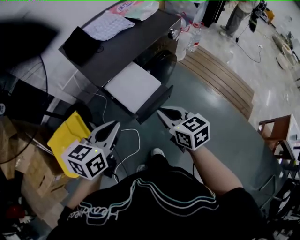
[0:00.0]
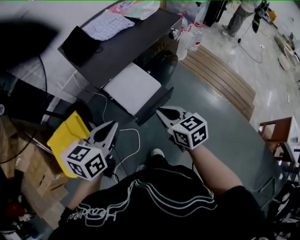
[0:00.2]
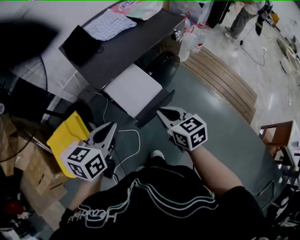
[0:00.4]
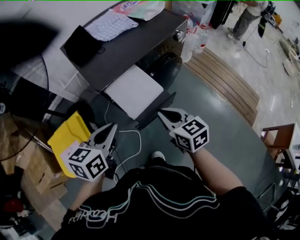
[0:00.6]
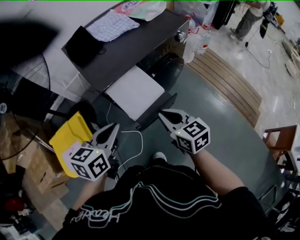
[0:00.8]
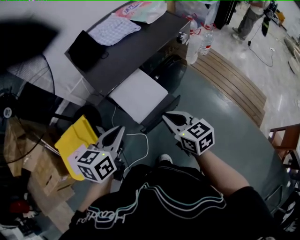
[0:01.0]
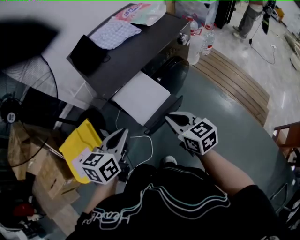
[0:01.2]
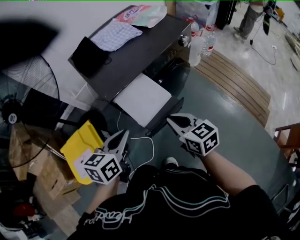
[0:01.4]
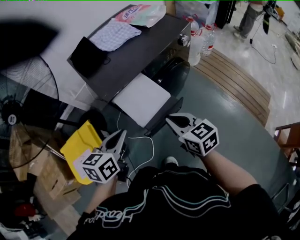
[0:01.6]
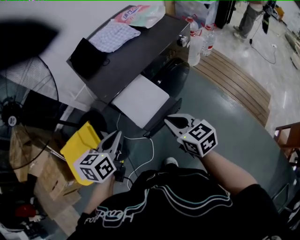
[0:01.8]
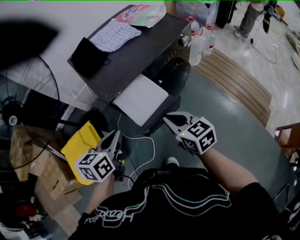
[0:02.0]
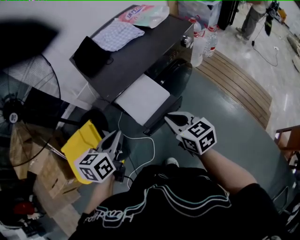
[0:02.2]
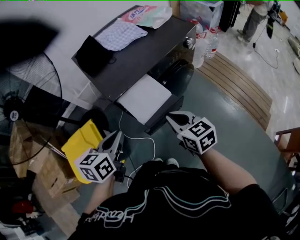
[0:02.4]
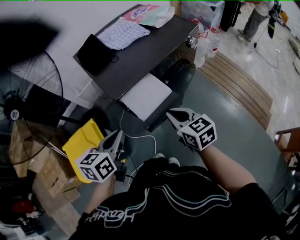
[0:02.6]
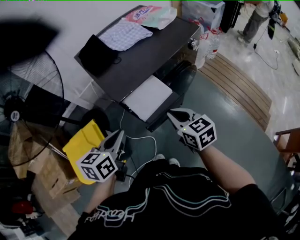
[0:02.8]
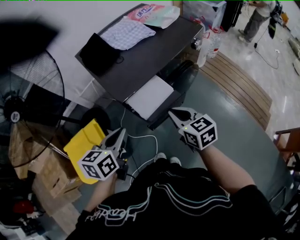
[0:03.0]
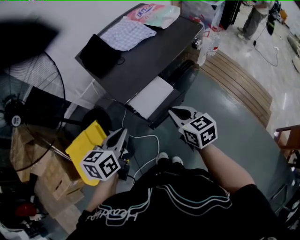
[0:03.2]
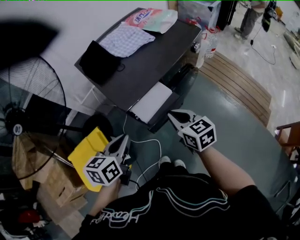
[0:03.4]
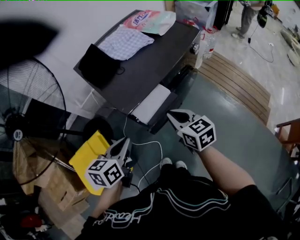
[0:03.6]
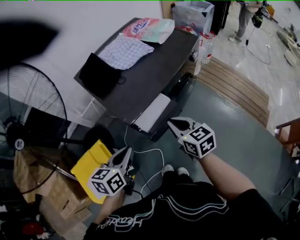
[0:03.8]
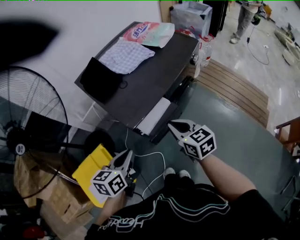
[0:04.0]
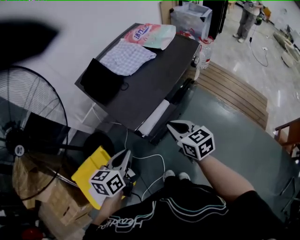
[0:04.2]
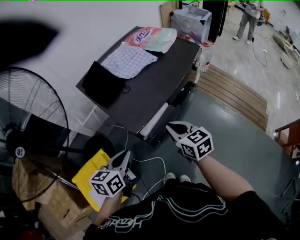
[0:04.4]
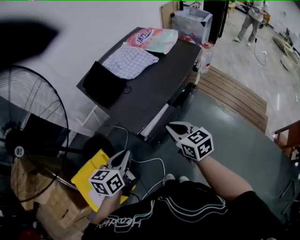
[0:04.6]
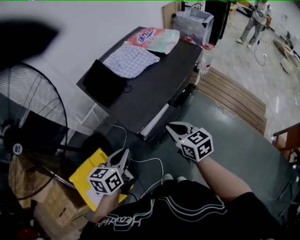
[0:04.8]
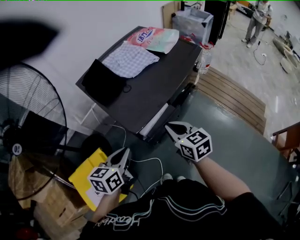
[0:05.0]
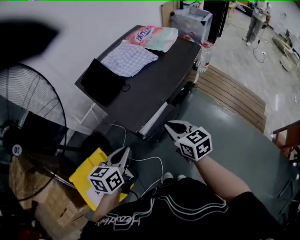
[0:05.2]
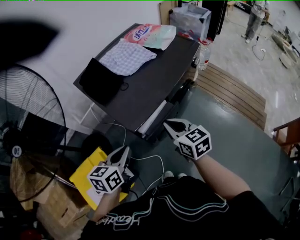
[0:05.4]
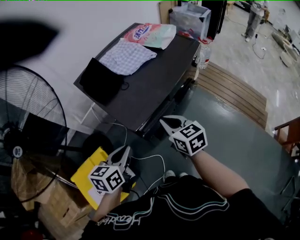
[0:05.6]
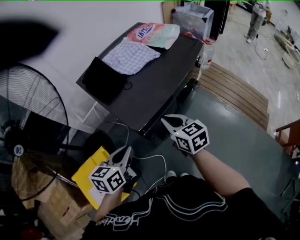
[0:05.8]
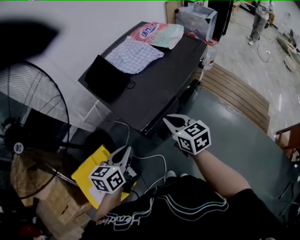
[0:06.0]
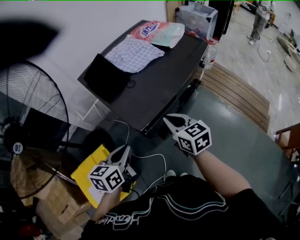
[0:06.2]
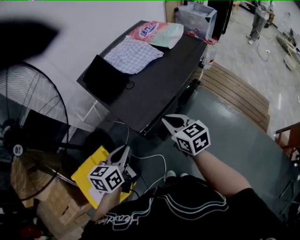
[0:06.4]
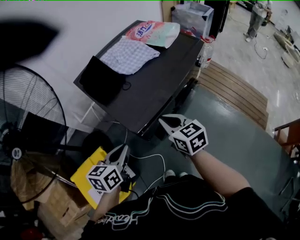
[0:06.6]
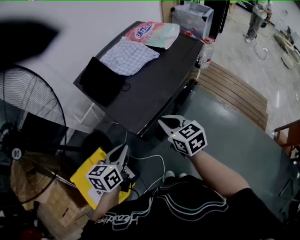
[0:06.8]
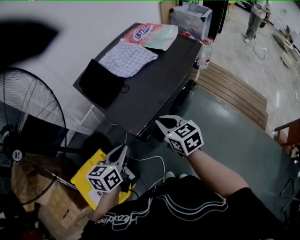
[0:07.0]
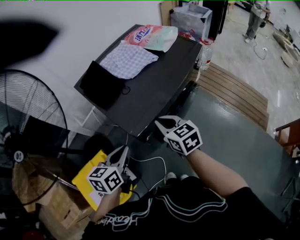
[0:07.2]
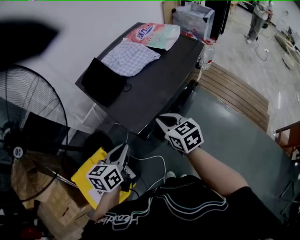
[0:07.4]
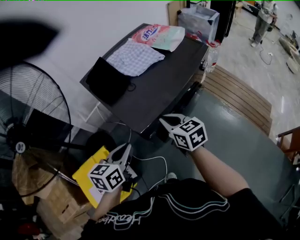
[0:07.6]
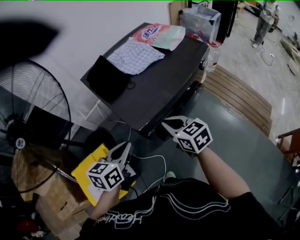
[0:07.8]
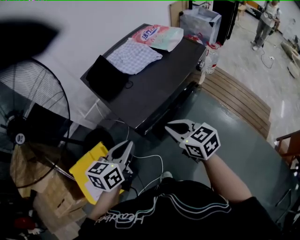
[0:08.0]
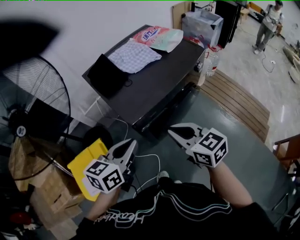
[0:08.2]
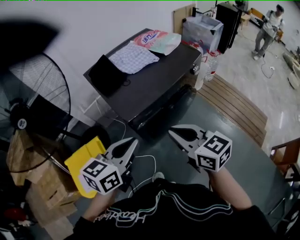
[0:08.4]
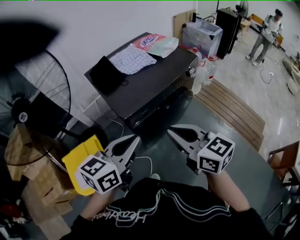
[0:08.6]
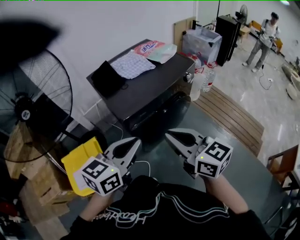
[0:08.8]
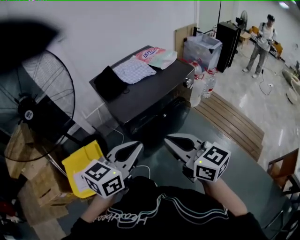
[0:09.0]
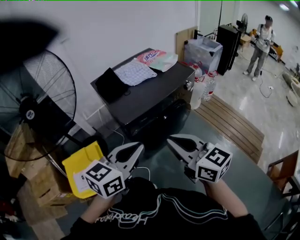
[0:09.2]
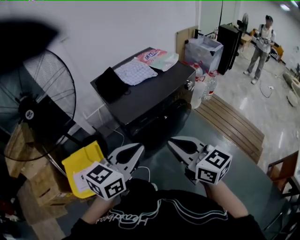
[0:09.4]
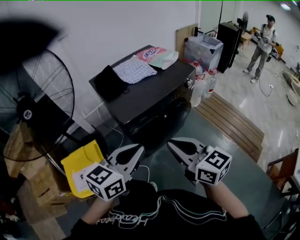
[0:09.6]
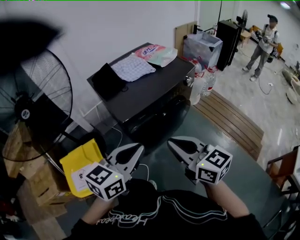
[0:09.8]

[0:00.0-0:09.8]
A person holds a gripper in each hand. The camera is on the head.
0:00.0 to 0:01.4: The left gripper ends up about 5 cm from where it was.
0:01.4 to 0:02.8: The left gripper travels to the left by approximately 5 cm.
0:02.8 to 0:04.2: Both grippers move forward and to the left, approximately 10 cm.
0:04.2 to 0:05.6: The grippers move only a little.
0:05.6 to 0:07.0: There are only small adjustments of the grippers.
0:07.0 to 0:08.4: The right gripper shifts about 20 cm backward, upward and to the right. The left gripper goes roughly 20 cm upward, to the right and backward.
0:08.4 to 0:09.8: The left gripper is displaced backward and to the right by roughly 10 cm; the right gripper moves backward, about 5 cm.

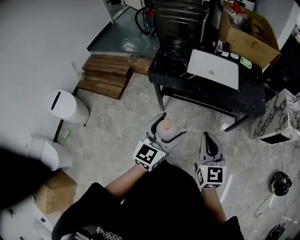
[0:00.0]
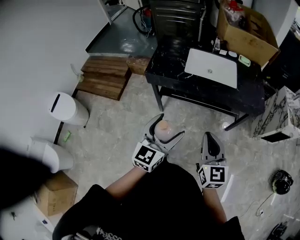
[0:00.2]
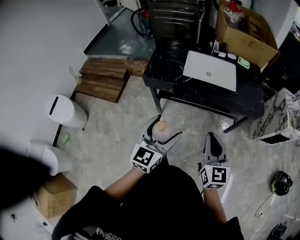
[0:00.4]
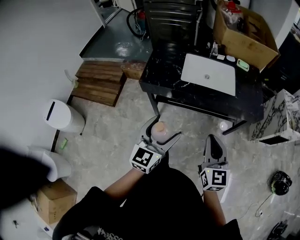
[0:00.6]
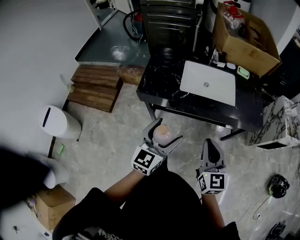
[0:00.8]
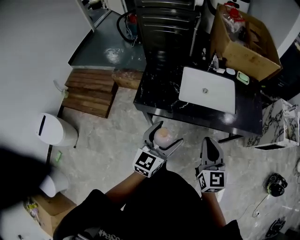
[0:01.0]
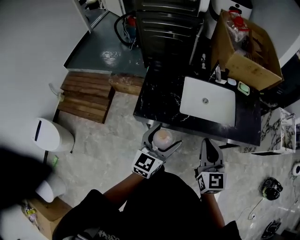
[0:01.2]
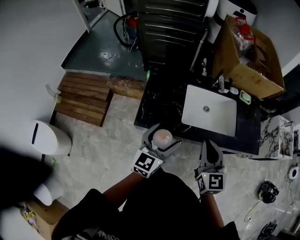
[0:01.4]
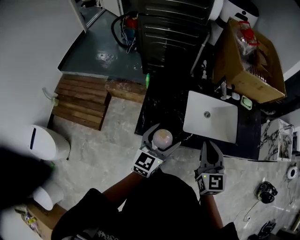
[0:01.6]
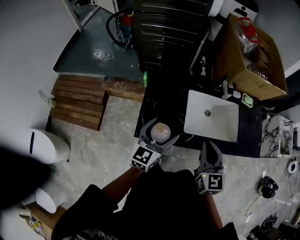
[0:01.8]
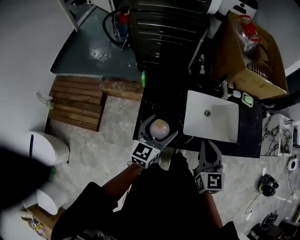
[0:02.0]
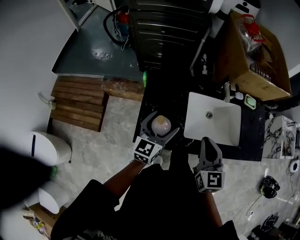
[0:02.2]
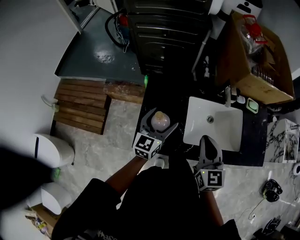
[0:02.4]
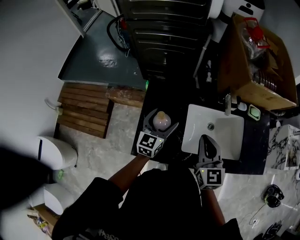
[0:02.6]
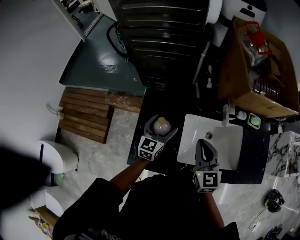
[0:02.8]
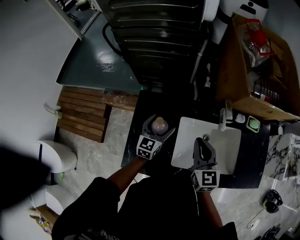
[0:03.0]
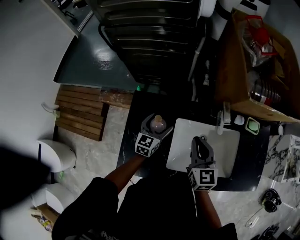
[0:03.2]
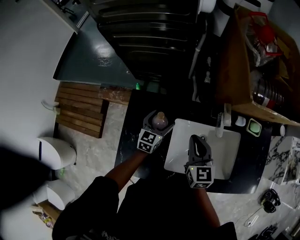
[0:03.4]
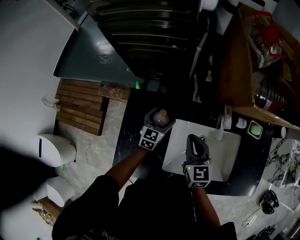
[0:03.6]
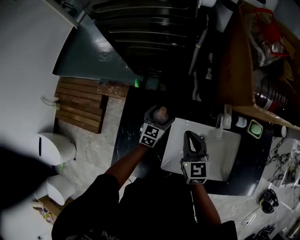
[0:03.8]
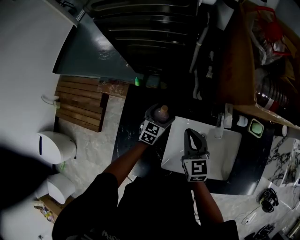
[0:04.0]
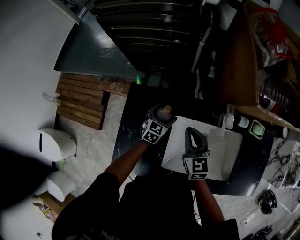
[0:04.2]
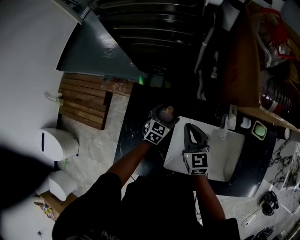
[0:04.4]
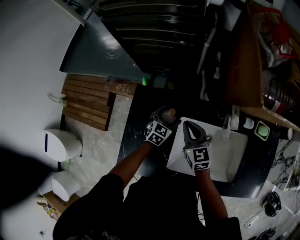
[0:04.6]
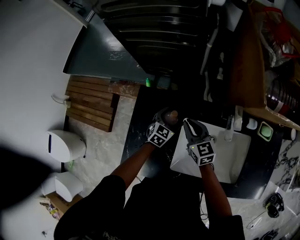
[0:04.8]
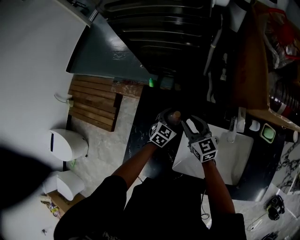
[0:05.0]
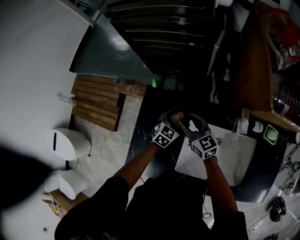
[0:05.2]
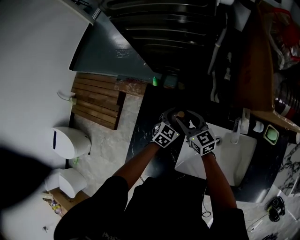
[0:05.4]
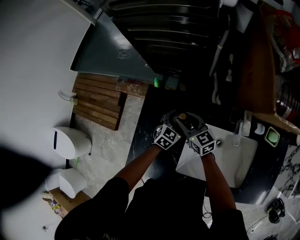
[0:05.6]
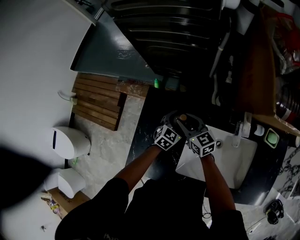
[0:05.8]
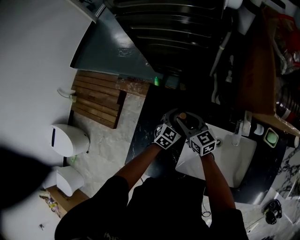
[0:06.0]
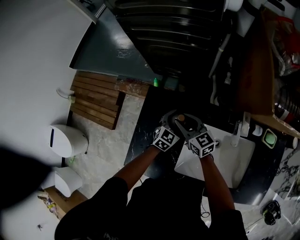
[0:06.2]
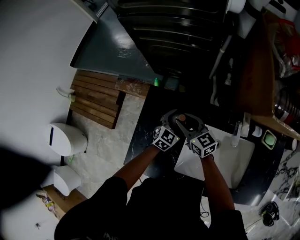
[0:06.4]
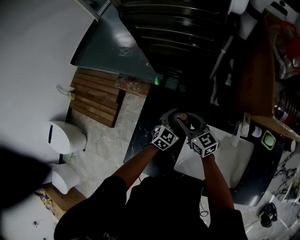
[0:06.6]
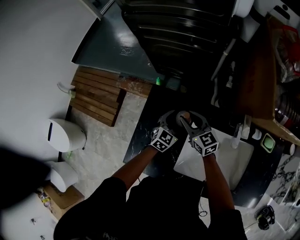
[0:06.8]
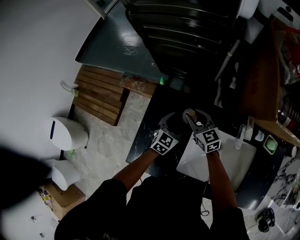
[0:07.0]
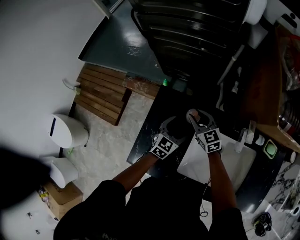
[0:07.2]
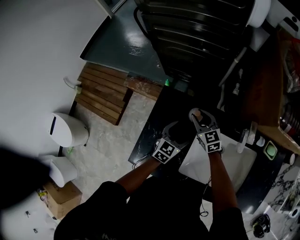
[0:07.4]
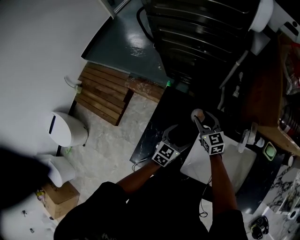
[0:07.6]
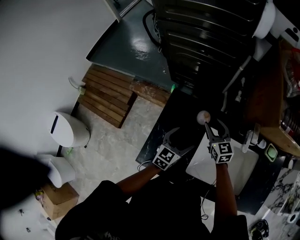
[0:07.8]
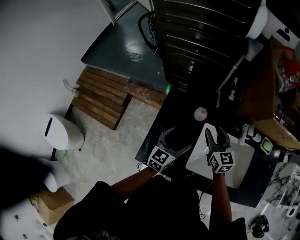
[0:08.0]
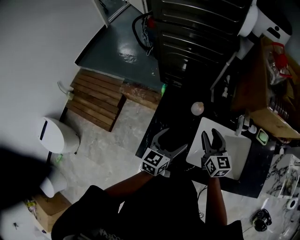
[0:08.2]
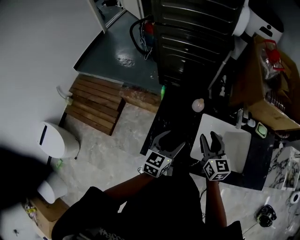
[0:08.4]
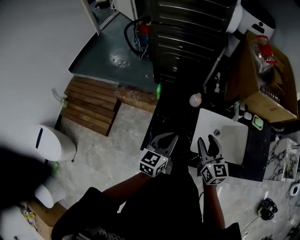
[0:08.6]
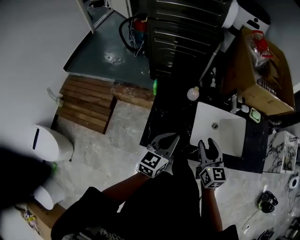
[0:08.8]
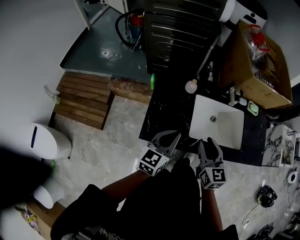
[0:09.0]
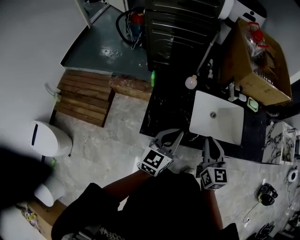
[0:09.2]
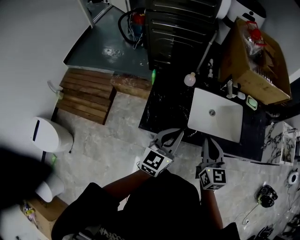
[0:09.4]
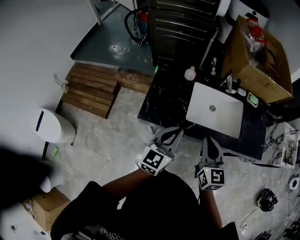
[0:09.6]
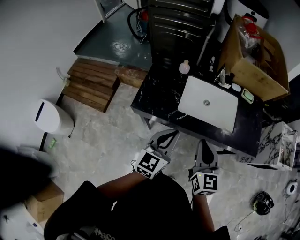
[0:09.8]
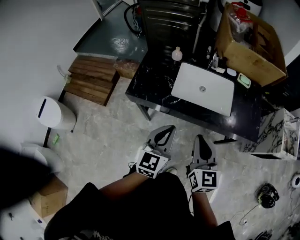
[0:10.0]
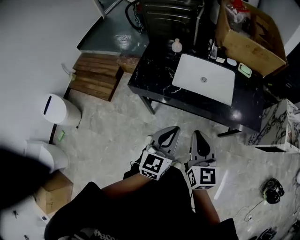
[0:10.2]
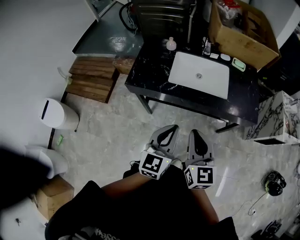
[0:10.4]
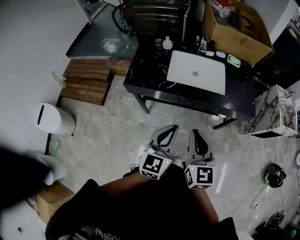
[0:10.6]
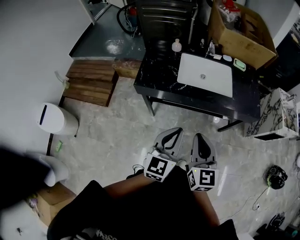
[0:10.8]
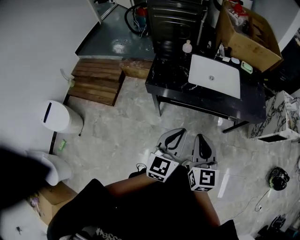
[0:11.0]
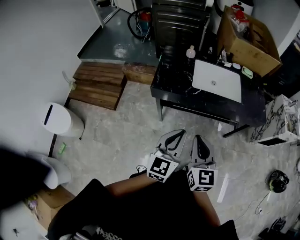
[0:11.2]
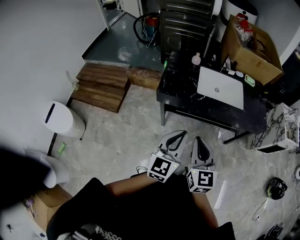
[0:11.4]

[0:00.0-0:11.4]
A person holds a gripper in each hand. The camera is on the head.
0:00.0 to 0:01.4: The two grippers go roughly 35 cm forward.
0:01.4 to 0:02.8: Both grippers move forward, approximately 25 cm.
0:02.8 to 0:04.2: The right gripper shifts roughly 15 cm forward and downward. Meanwhile the left gripper travels downward and forward by roughly 20 cm, and changes its angle by some 20 degrees.
0:04.2 to 0:05.6: The right gripper travels to the left, downward and forward by about 15 cm, swivels some 30 degrees, and opens up.
0:05.6 to 0:07.2: The left gripper moves upward, about 5 cm.
0:07.2 to 0:08.6: The right gripper shifts approximately 30 cm backward and upward, and rotates approximately 30 degrees, while the left gripper travels backward, upward and to the left by approximately 30 cm, turns by about 20 degrees, and closes its fingers.
0:08.6 to 0:10.0: The two grippers go approximately 30 cm backward and to the right. The right gripper closes its fingers.
0:10.0 to 0:11.4: The right gripper moves to the left and backward, approximately 25 cm; the left gripper is displaced backward and to the left by approximately 20 cm.

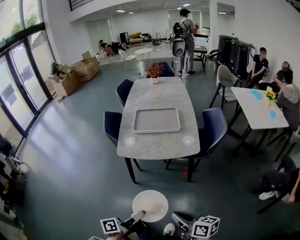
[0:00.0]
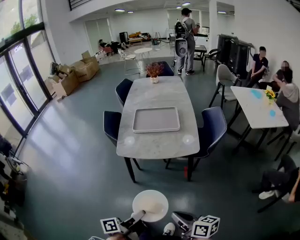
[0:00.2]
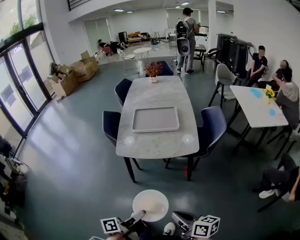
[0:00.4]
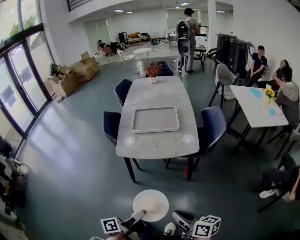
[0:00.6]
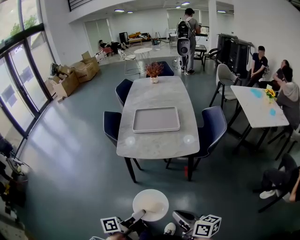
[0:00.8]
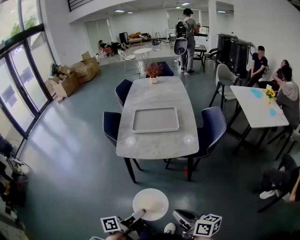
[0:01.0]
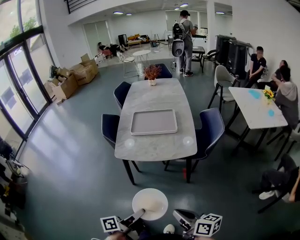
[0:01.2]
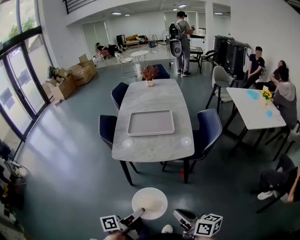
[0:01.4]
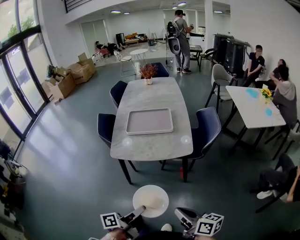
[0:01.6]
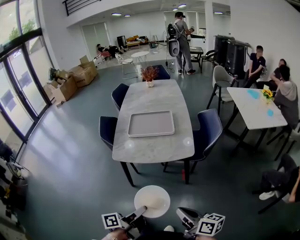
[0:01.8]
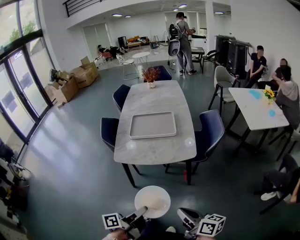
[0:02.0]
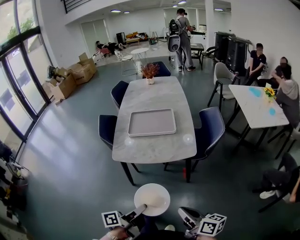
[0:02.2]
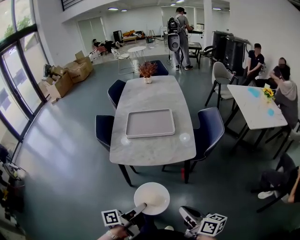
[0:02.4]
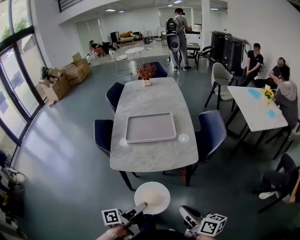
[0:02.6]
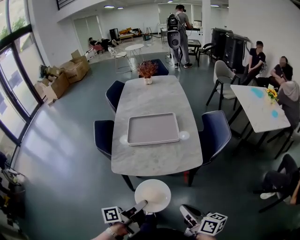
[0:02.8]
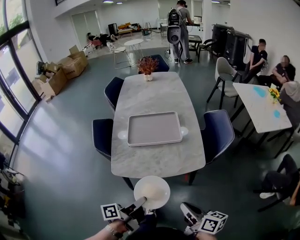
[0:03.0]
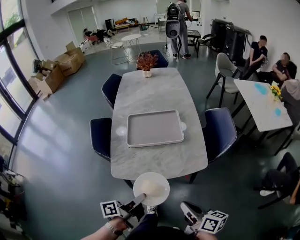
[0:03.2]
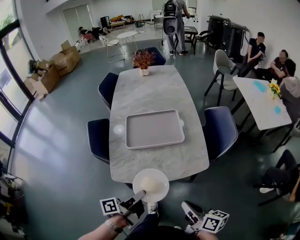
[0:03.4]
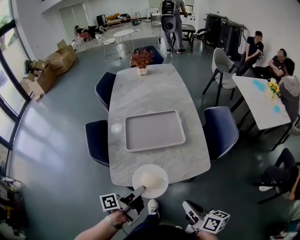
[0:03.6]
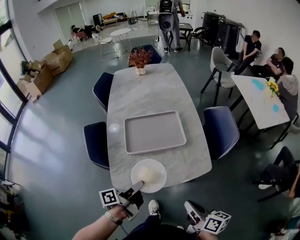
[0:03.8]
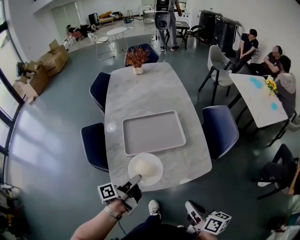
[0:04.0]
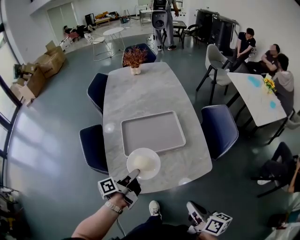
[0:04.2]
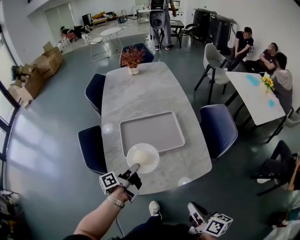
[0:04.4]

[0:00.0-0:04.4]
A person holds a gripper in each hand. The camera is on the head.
0:00.0 to 0:01.4: The right gripper changes place by roughly 5 cm.
0:01.4 to 0:03.0: The right gripper ends up about 20 cm from where it was.
0:03.0 to 0:04.4: The right gripper changes place by roughly 10 cm.
